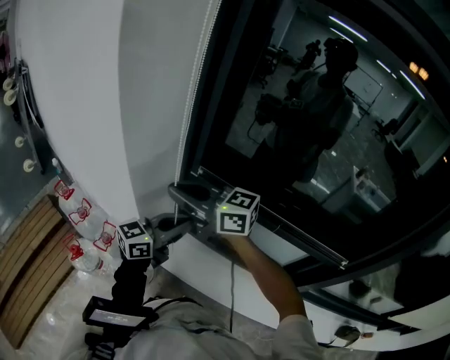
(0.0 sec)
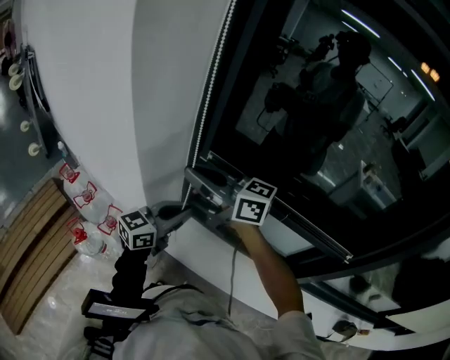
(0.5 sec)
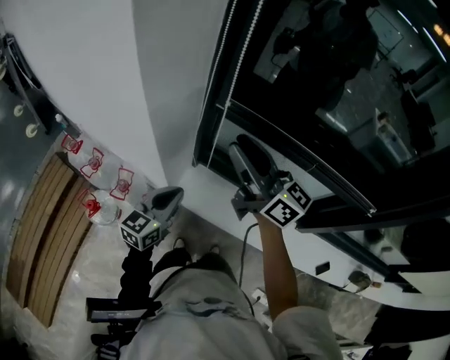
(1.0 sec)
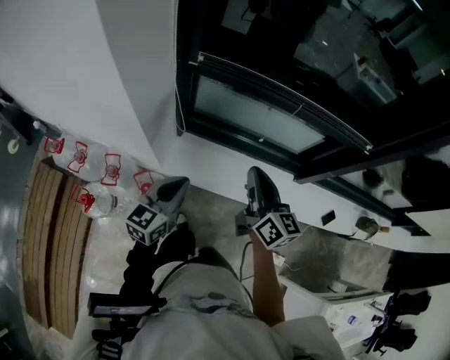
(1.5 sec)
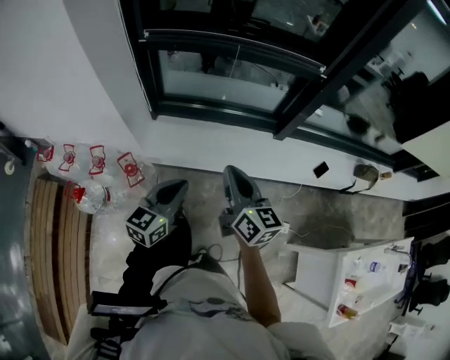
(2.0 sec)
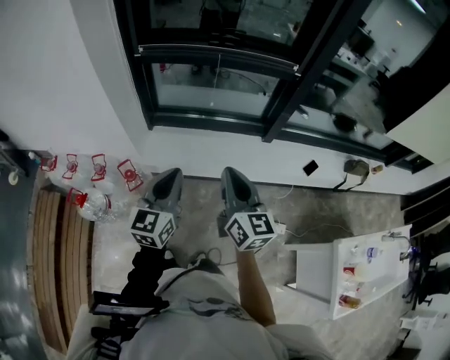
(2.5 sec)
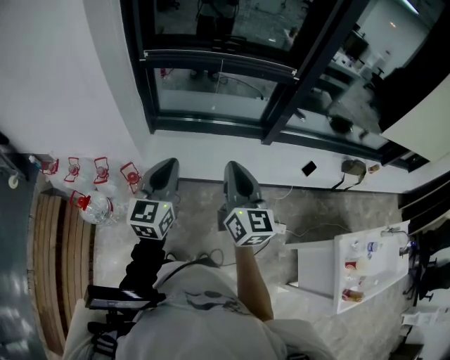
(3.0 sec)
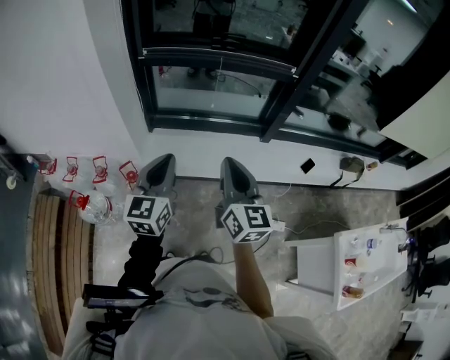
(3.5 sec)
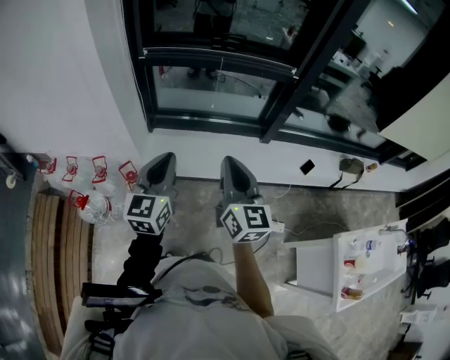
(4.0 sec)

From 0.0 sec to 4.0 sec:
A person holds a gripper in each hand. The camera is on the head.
From 0.0 sec to 2.0 sec: The left gripper ends up roughly 35 cm from where it was, and rotates approximately 20 degrees. The right gripper shifts by roughly 40 cm, swivels roughly 70 degrees, and opens, then closes again.
From 2.0 sec to 4.0 sec: The left gripper moves upward, approximately 15 cm, and changes its angle by about 20 degrees; the right gripper shifts approximately 10 cm upward and backward, and turns by roughly 20 degrees.

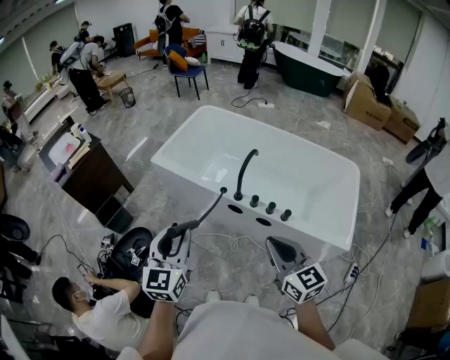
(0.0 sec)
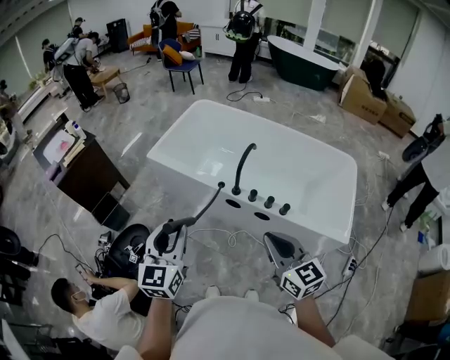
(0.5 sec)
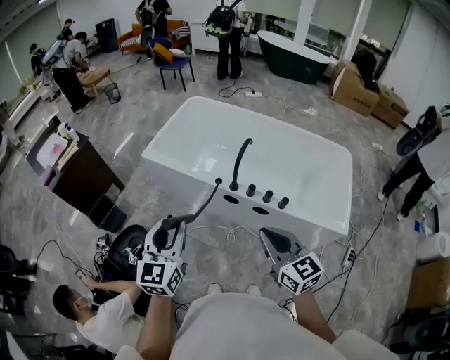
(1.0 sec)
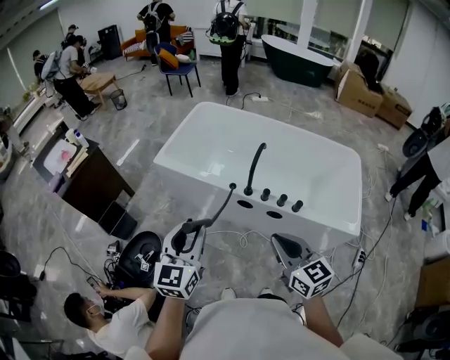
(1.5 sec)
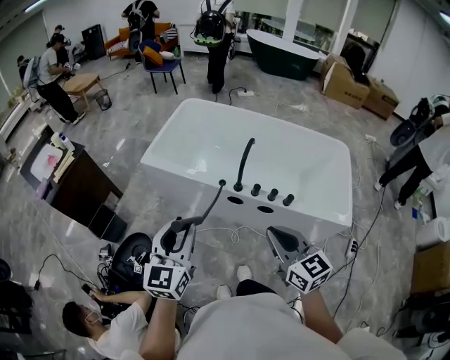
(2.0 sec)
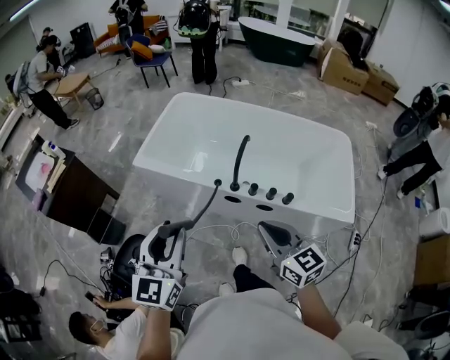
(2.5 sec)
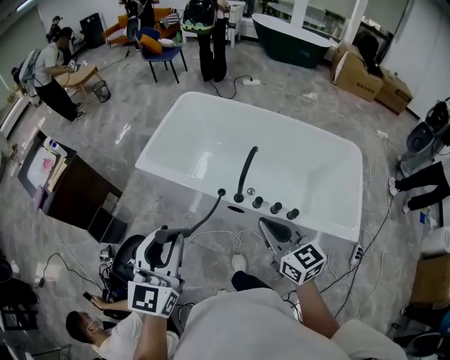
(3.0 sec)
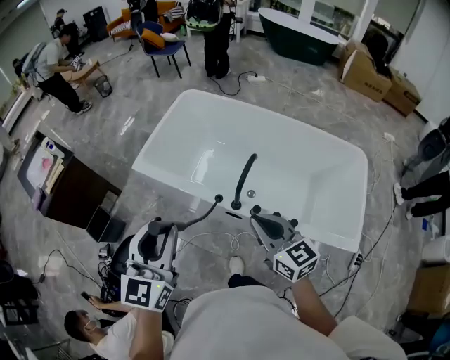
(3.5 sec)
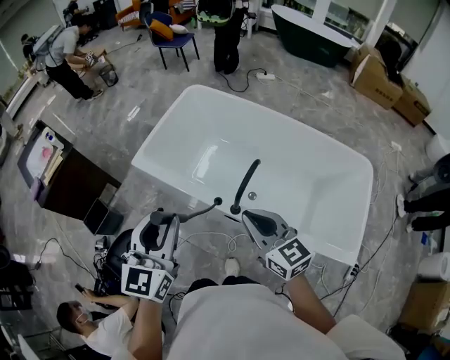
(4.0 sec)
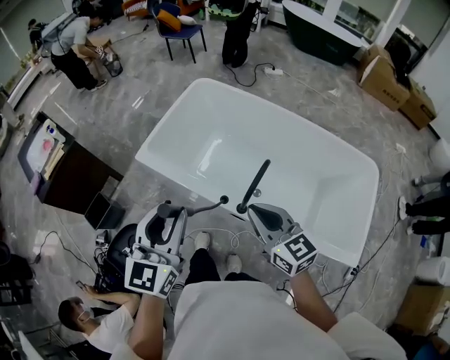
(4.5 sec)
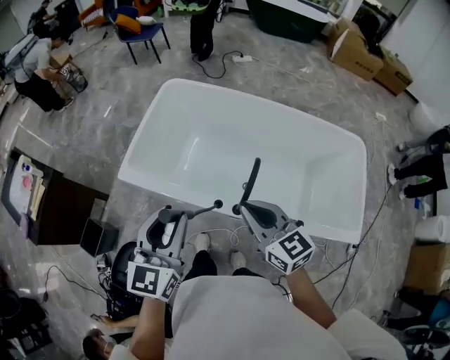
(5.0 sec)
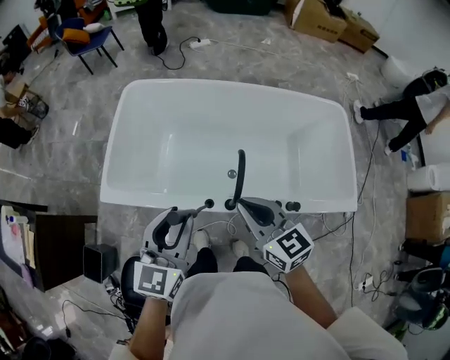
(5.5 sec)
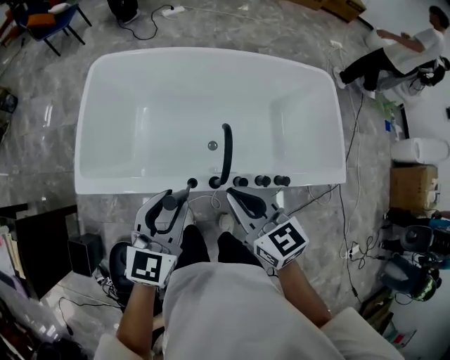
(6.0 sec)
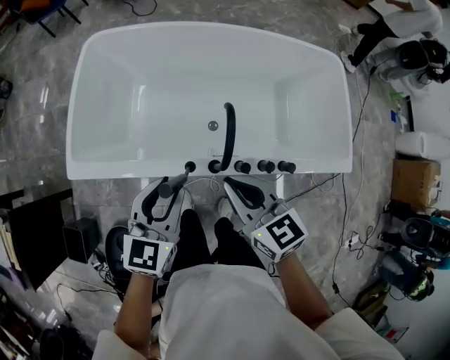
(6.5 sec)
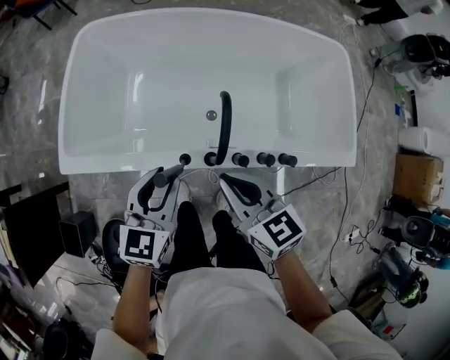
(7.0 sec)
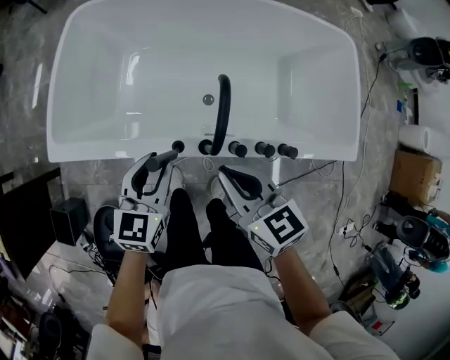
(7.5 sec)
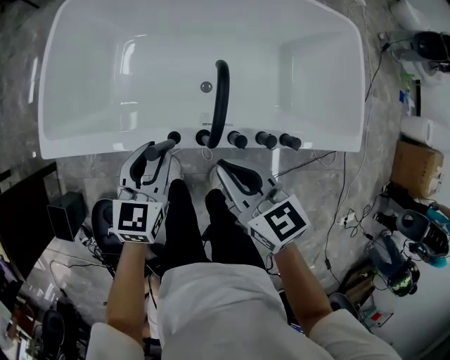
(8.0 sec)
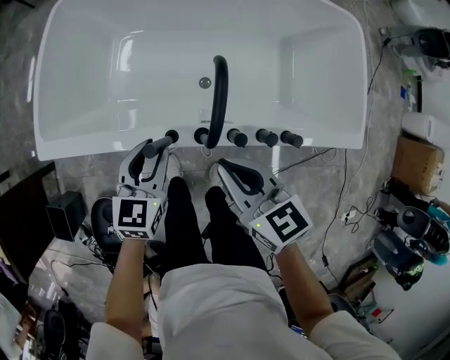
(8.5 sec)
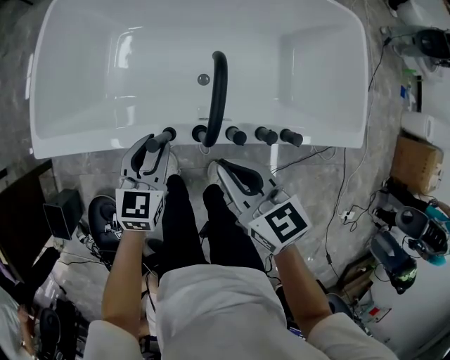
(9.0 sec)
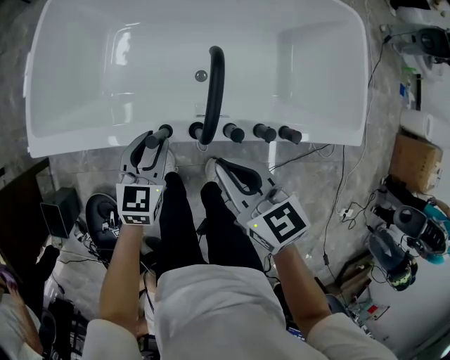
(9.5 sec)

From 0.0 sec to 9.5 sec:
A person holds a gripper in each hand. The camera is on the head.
From 0.0 sec to 2.0 sec: The grippers both shift to the left by about 5 cm.
From 2.0 sec to 4.0 sec: The left gripper heads forward and to the right, covering some 20 cm. Meanwhile the right gripper shifts some 25 cm forward.
From 4.0 sec to 5.5 sec: The right gripper moves about 10 cm, and changes its angle by some 20 degrees, while the left gripper changes place by approximately 15 cm, and swivels roughly 30 degrees.
From 5.5 sec to 7.5 sec: The left gripper shifts approximately 20 cm downward. Meanwhile the right gripper goes some 15 cm downward.
From 7.5 sec to 9.5 sec: The left gripper is displaced downward by roughly 10 cm; the right gripper ends up roughly 5 cm from where it was.

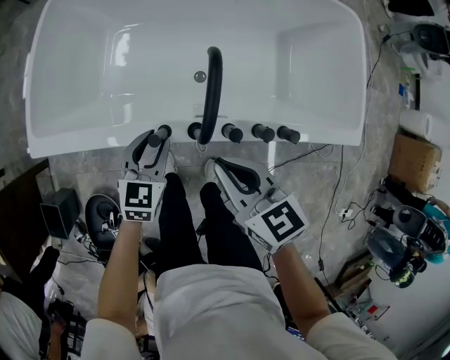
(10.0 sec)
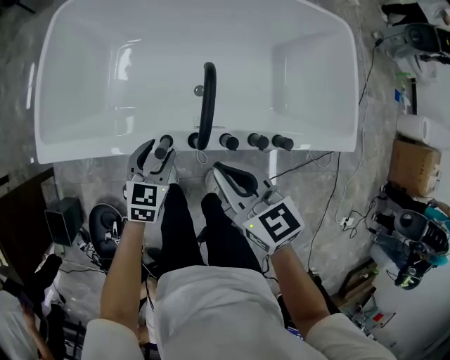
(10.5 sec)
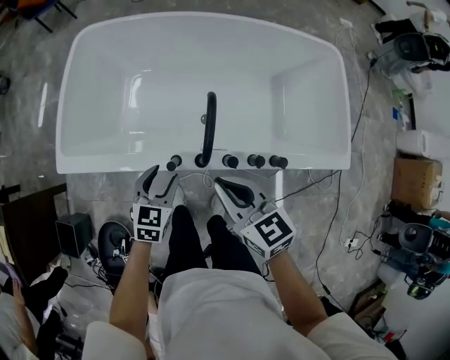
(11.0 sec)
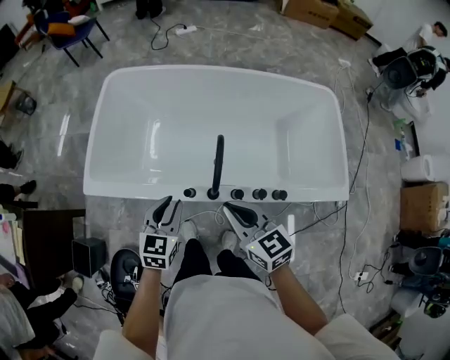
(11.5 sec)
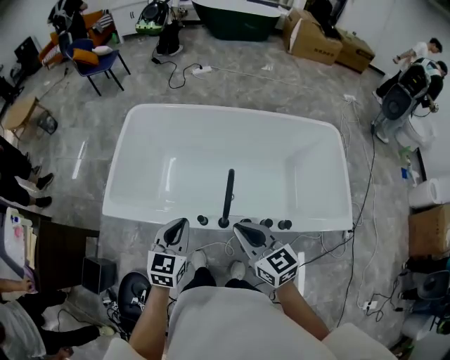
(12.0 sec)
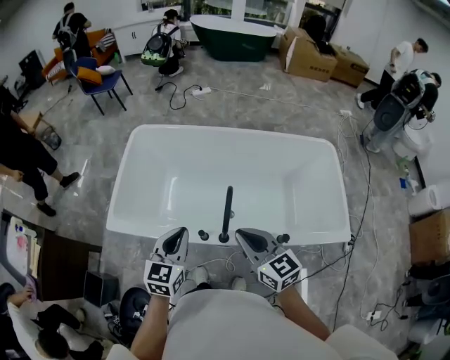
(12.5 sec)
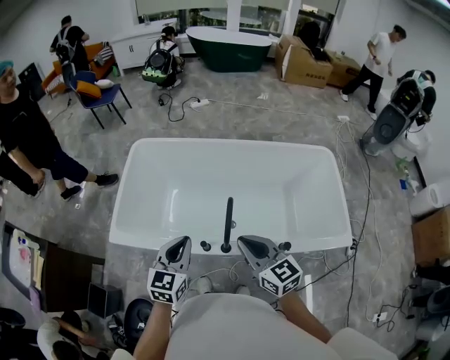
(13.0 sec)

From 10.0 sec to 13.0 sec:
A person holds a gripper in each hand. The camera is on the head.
From 10.0 sec to 11.5 sec: Both grippers travel together upward, about 15 cm.
From 11.5 sec to 13.0 sec: The right gripper moves upward, some 10 cm; the left gripper moves upward, about 15 cm, and closes its fingers.

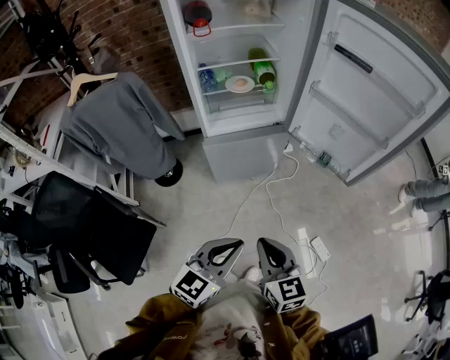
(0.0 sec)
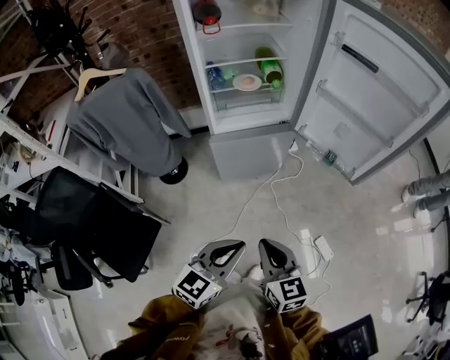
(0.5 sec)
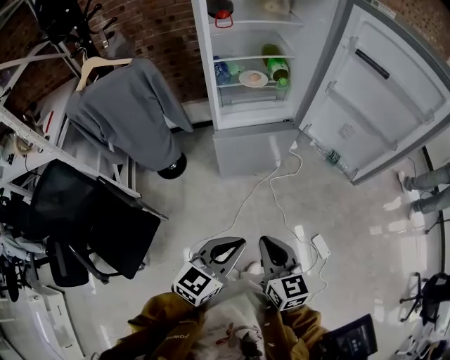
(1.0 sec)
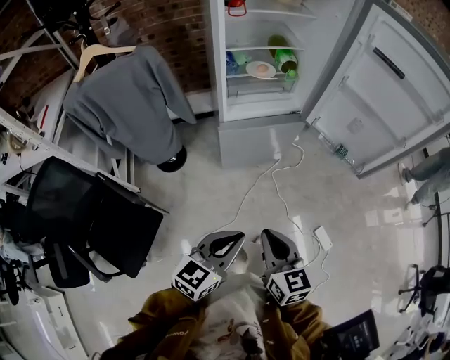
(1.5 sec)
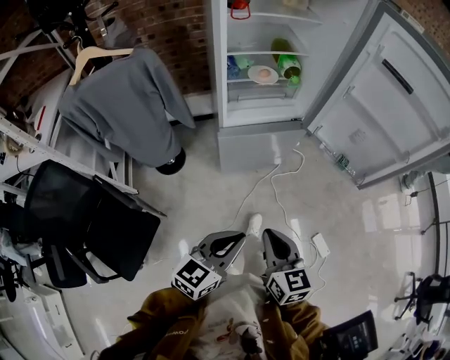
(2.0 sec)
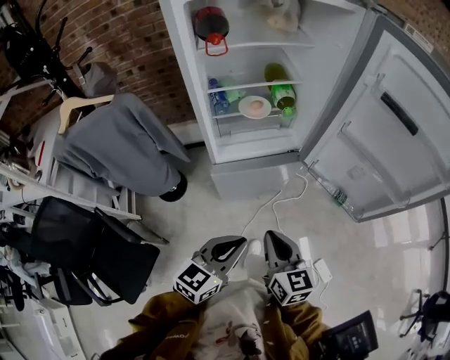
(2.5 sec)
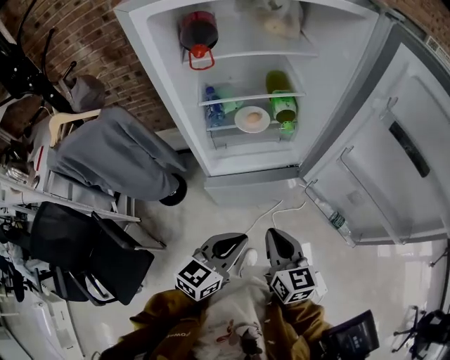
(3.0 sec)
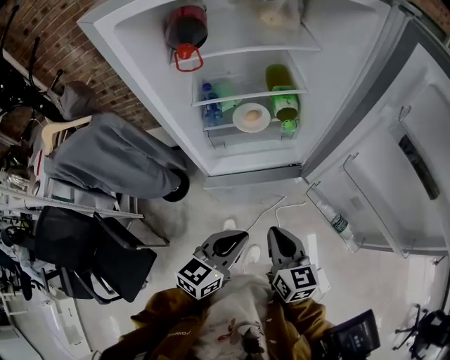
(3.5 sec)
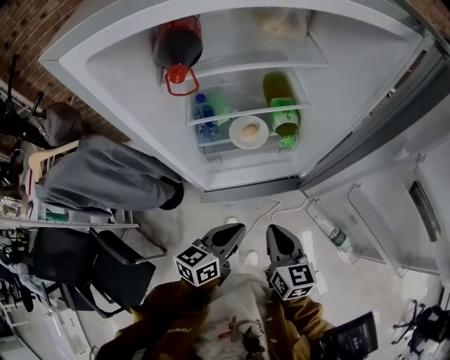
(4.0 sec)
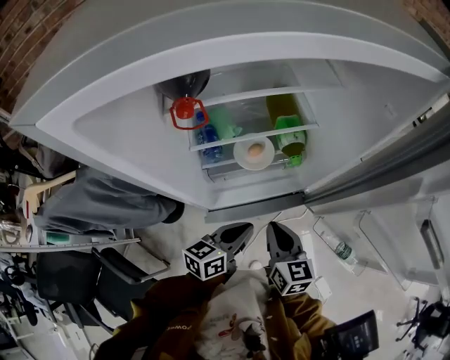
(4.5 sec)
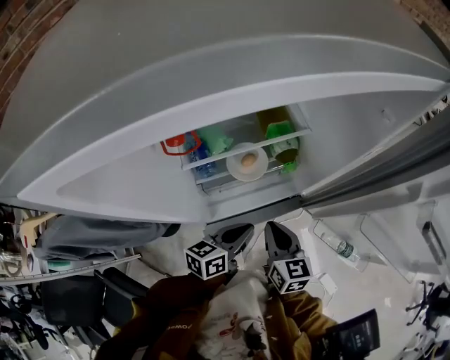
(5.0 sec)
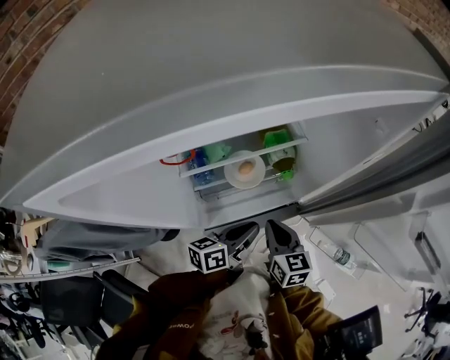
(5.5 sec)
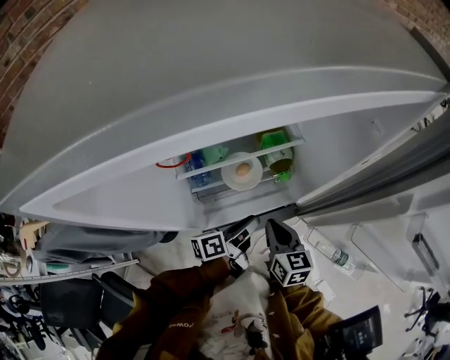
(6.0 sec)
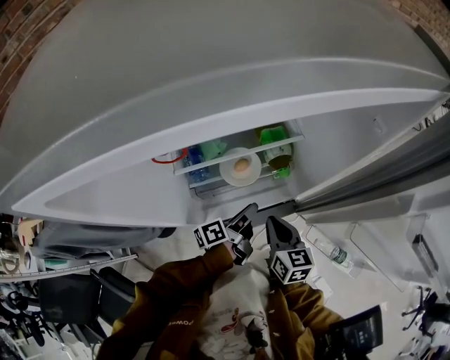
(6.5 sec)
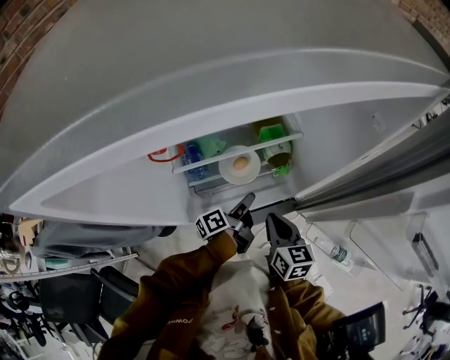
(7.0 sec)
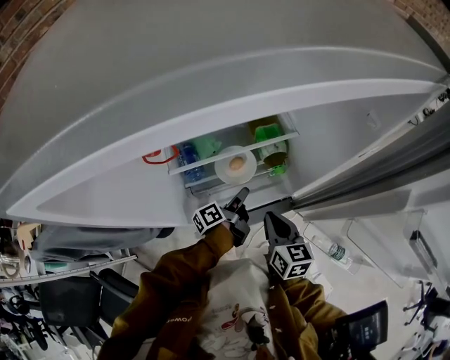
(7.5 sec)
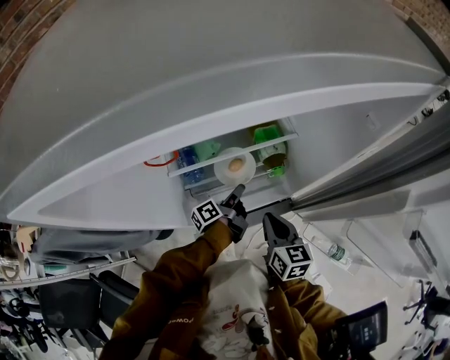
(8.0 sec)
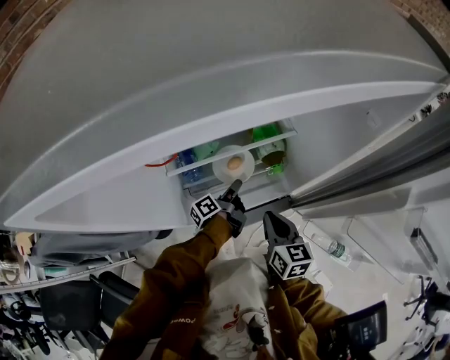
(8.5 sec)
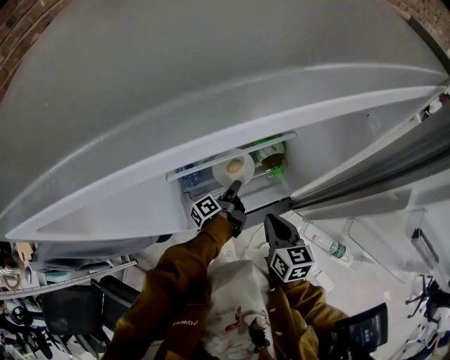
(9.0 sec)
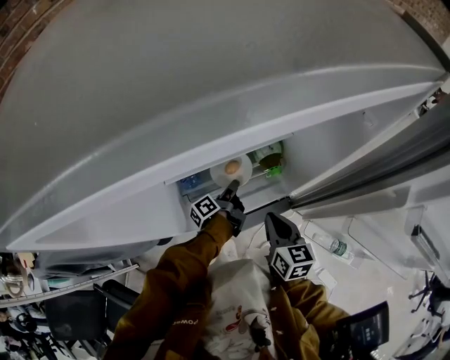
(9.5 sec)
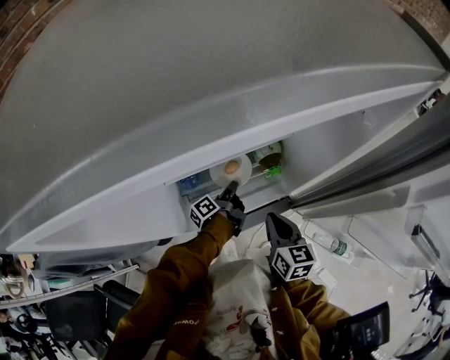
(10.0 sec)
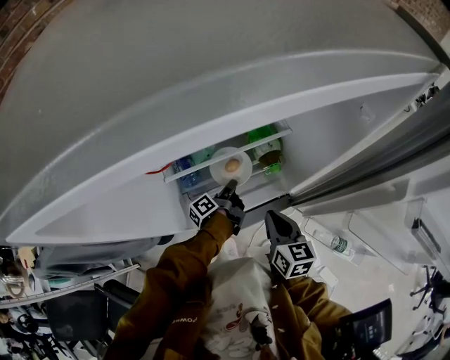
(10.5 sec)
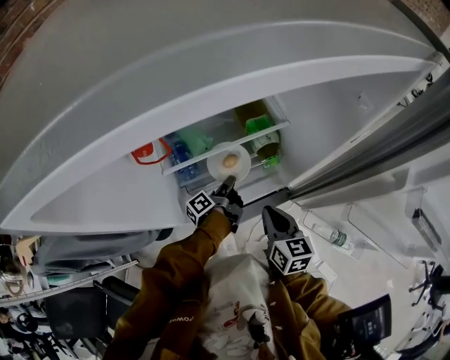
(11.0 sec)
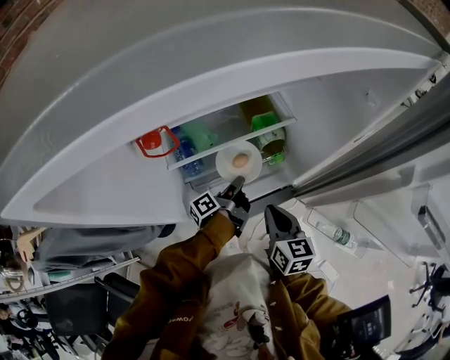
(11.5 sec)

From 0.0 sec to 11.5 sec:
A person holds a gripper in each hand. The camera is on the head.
From 0.0 sec to 2.0 sec: The grippers both shift to the left by about 10 cm.
From 2.0 sec to 4.0 sec: Both grippers travel together forward, about 40 cm.
From 4.0 sec to 6.0 sec: Both grippers move forward, about 15 cm. The left gripper rotates some 40 degrees.
From 6.0 sec to 7.5 sec: The left gripper heads downward and forward, covering roughly 10 cm, and rotates roughly 20 degrees.
From 7.5 sec to 9.5 sec: The left gripper changes place by some 5 cm.
From 9.5 sec to 11.5 sec: The left gripper shifts by some 5 cm.
